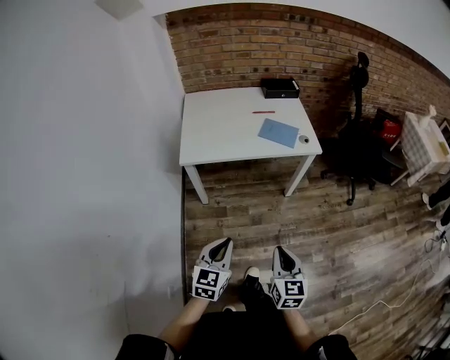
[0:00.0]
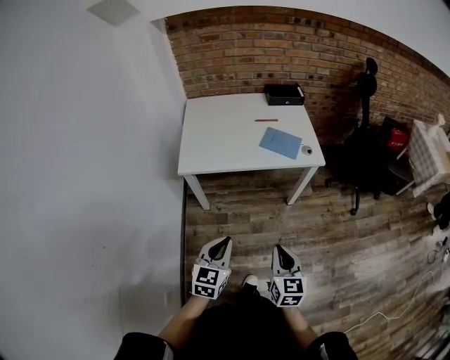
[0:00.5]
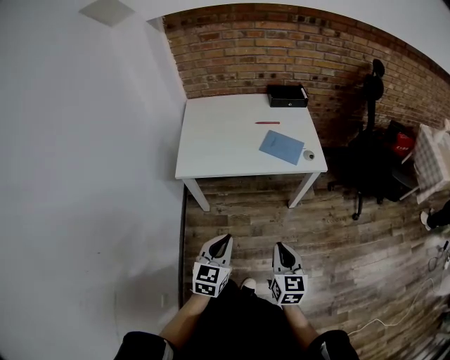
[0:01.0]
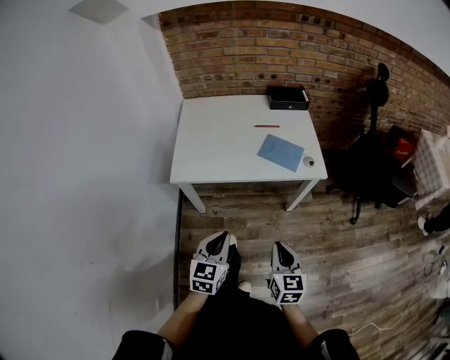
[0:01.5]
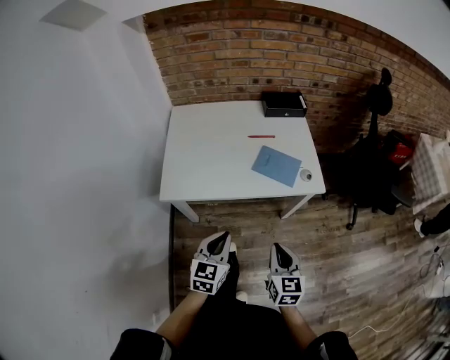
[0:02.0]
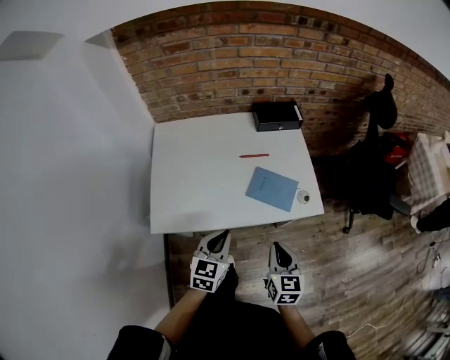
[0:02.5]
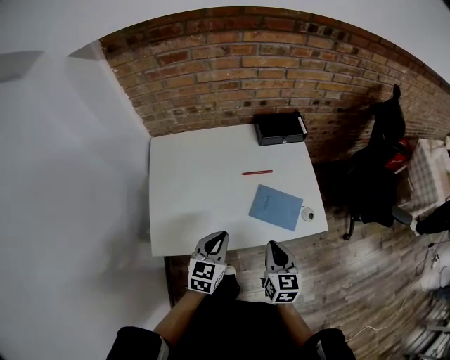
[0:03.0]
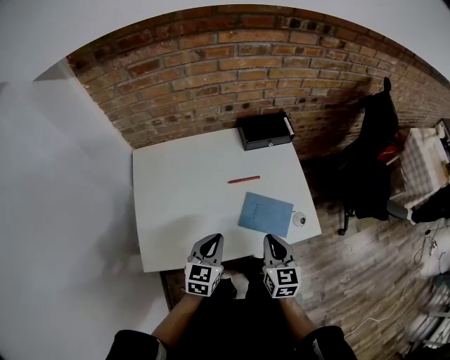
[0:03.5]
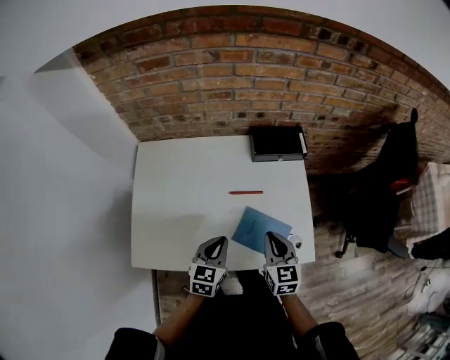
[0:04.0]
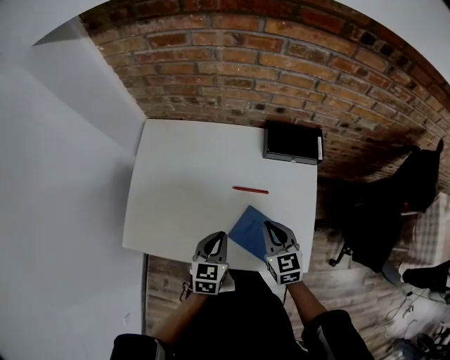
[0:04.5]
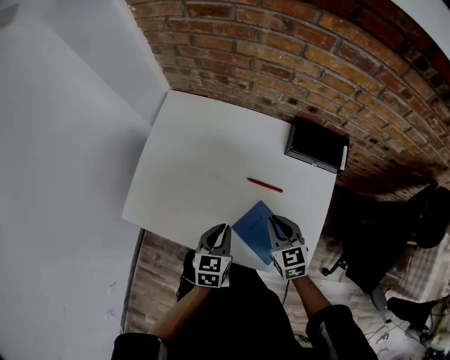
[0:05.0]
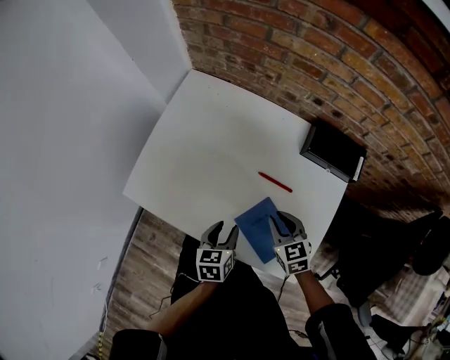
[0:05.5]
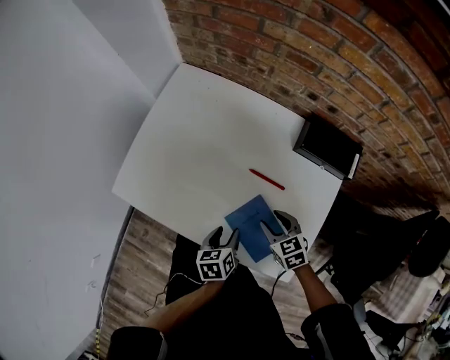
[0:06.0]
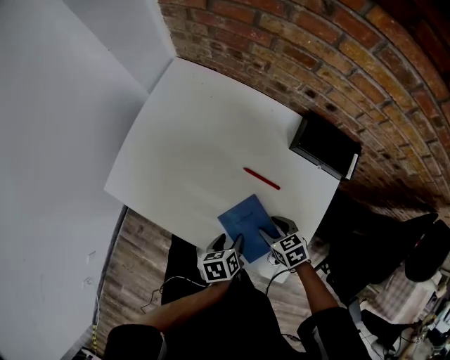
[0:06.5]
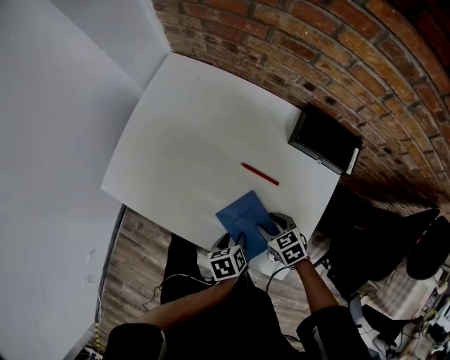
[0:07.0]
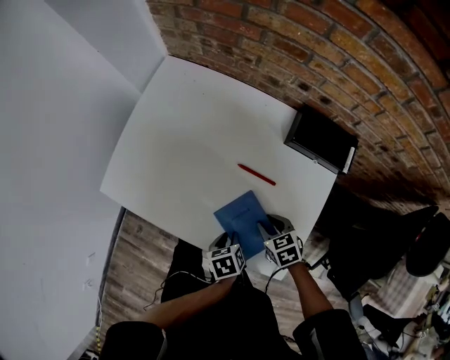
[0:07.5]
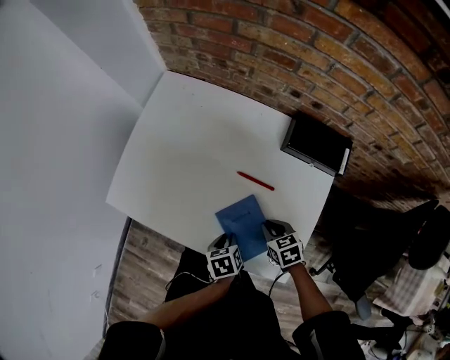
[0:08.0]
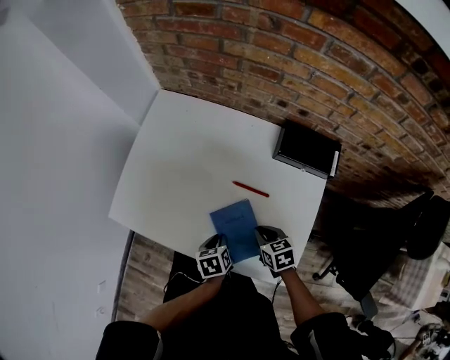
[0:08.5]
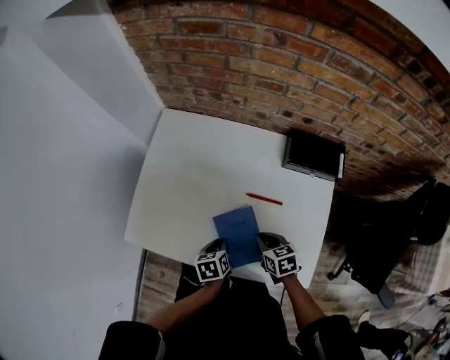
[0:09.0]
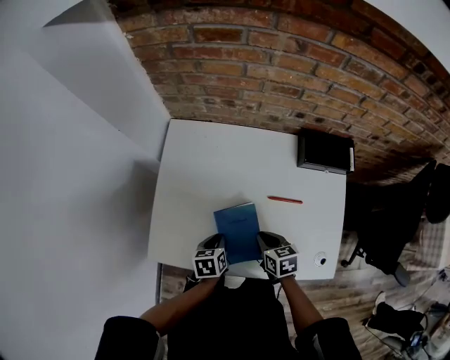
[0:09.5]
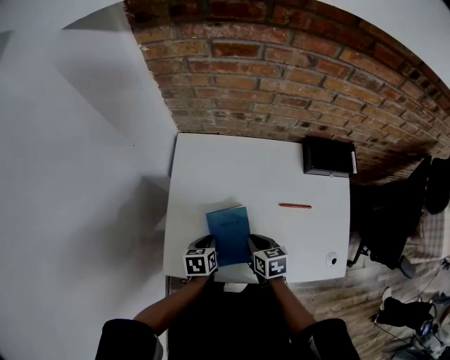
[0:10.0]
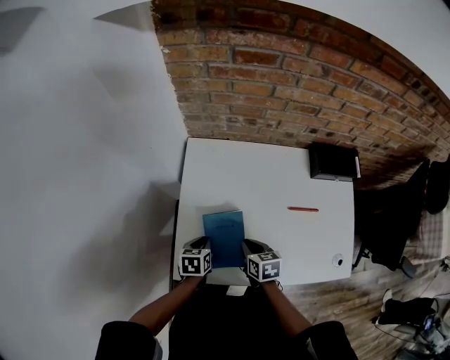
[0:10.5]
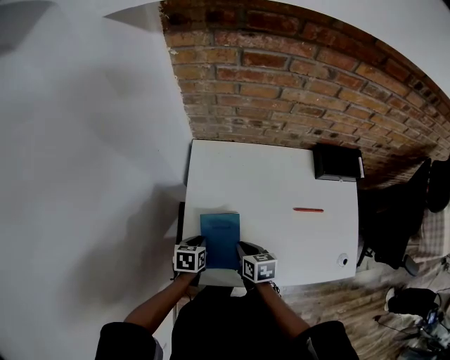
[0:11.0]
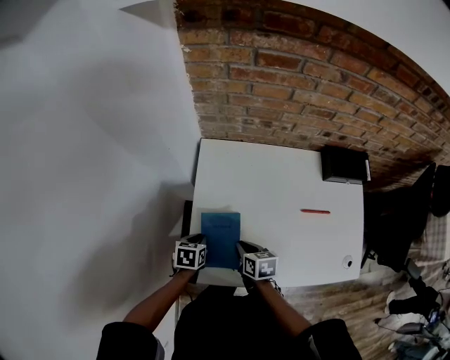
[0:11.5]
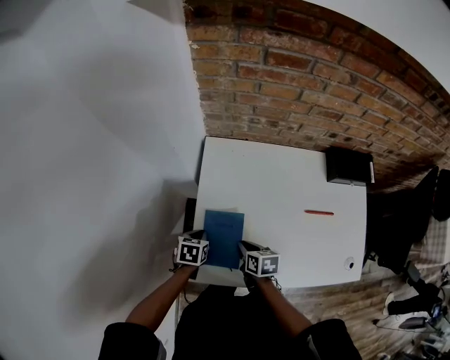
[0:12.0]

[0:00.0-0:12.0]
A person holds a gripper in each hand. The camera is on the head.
0:00.0 to 0:02.0: Both grippers move forward, roughly 30 cm.
0:02.0 to 0:04.0: The two grippers go roughly 35 cm forward.
0:04.0 to 0:06.0: The two grippers go roughly 15 cm downward. The right gripper rotates approximately 50 degrees, and opens, while the left gripper rotates around the line of its fingers by about 50 degrees, counterclockwise from behind, and opens up.
0:06.0 to 0:08.0: The right gripper closes; the left gripper closes up.
0:08.0 to 0:10.0: The two grippers go some 30 cm to the left and forward. The right gripper swivels about 30 degrees, while the left gripper rotates some 30 degrees.
0:10.0 to 0:12.0: The grippers both shift to the left by some 15 cm.

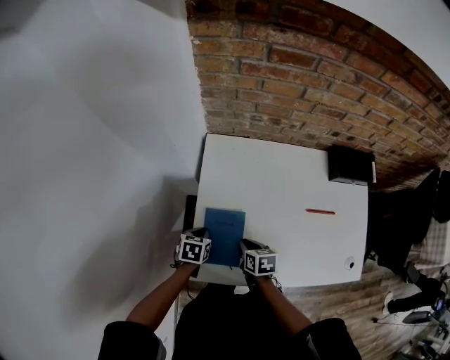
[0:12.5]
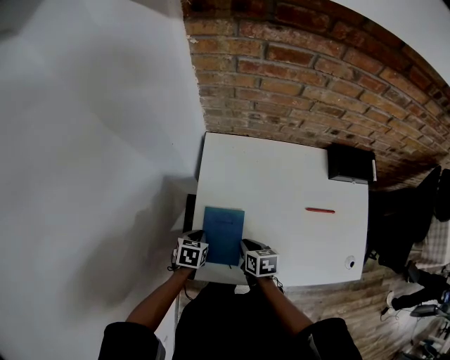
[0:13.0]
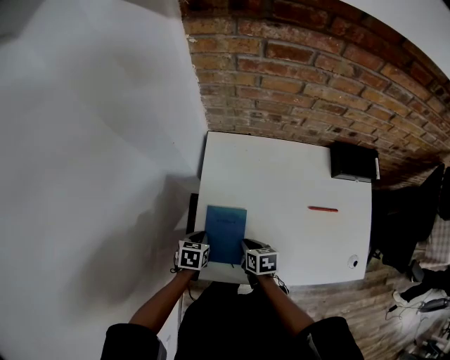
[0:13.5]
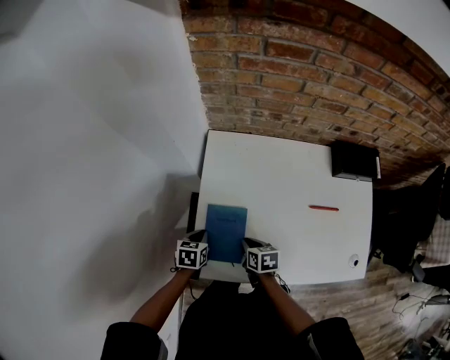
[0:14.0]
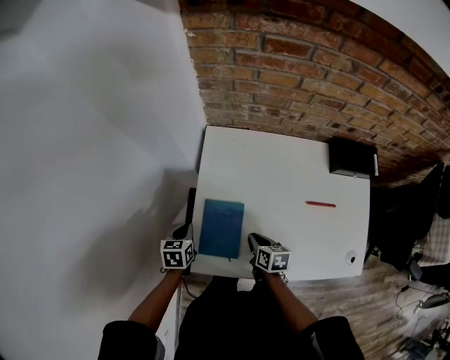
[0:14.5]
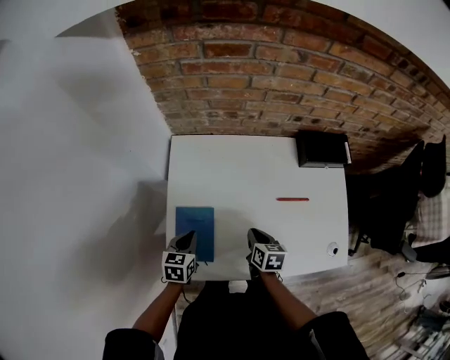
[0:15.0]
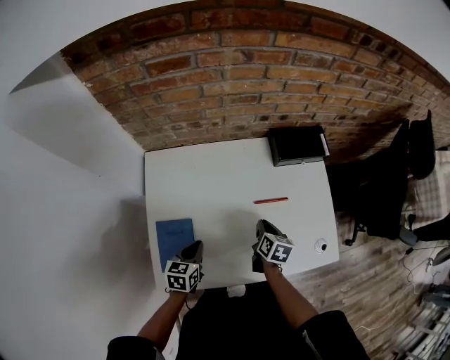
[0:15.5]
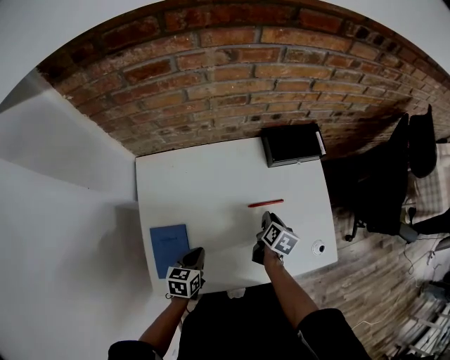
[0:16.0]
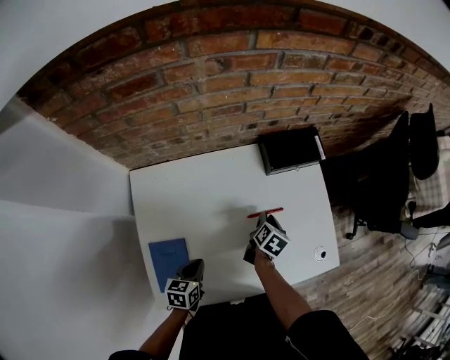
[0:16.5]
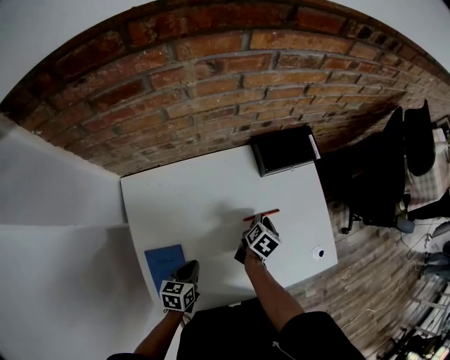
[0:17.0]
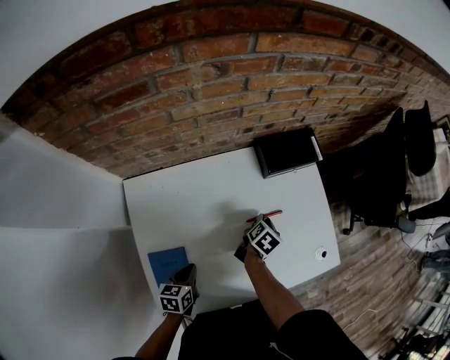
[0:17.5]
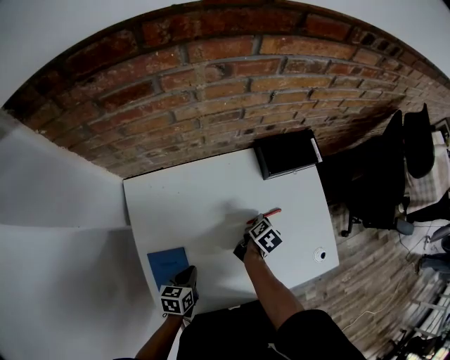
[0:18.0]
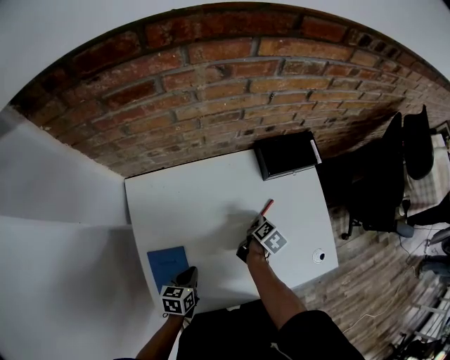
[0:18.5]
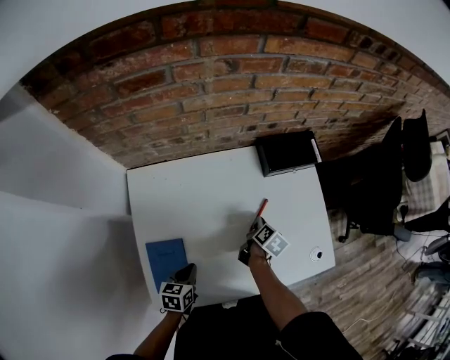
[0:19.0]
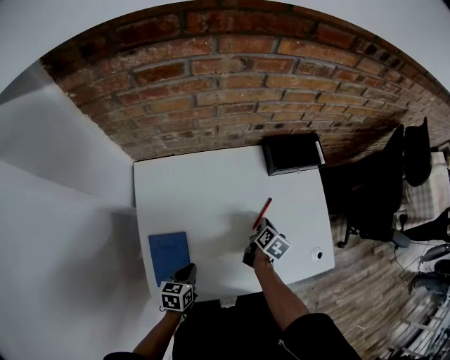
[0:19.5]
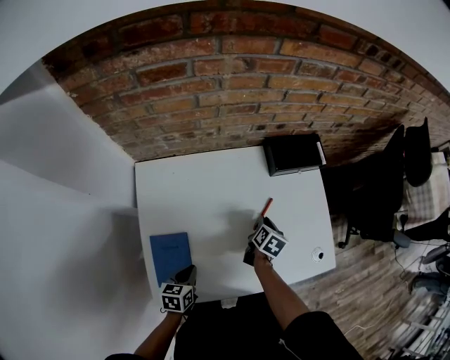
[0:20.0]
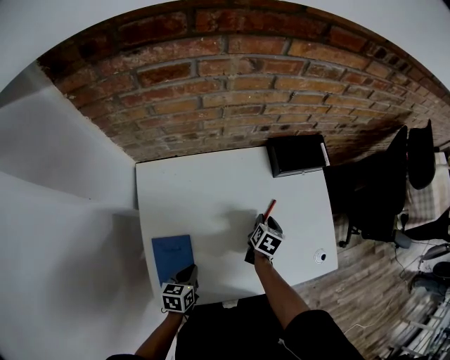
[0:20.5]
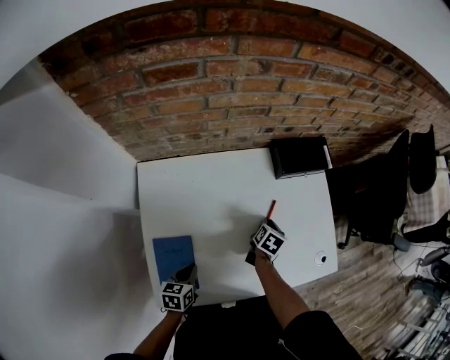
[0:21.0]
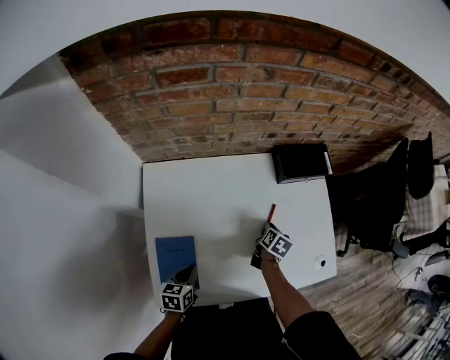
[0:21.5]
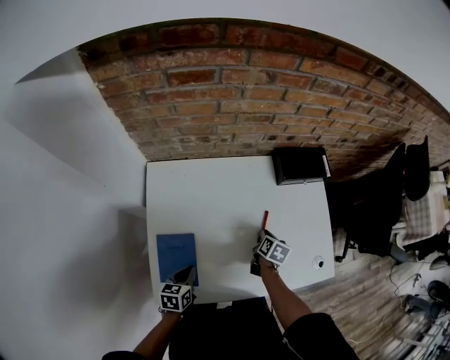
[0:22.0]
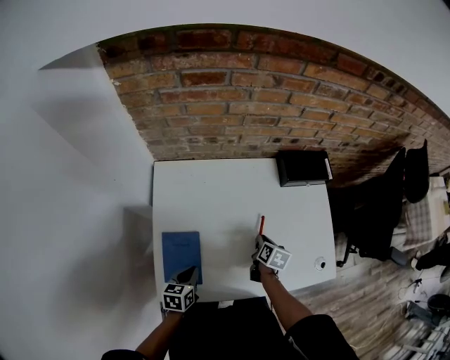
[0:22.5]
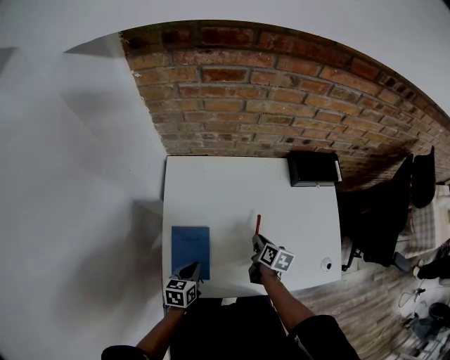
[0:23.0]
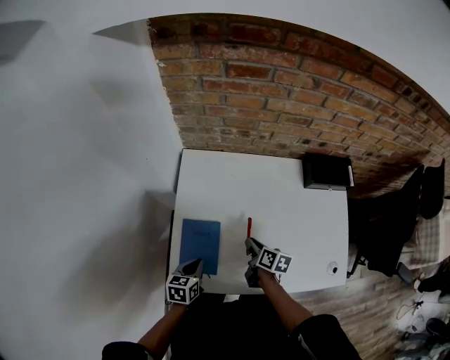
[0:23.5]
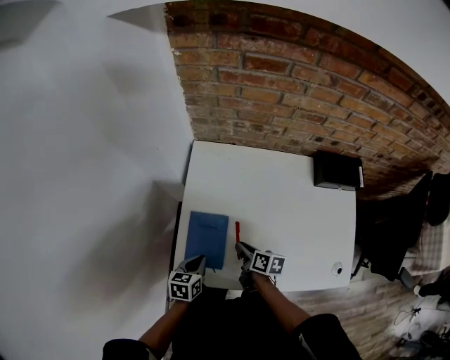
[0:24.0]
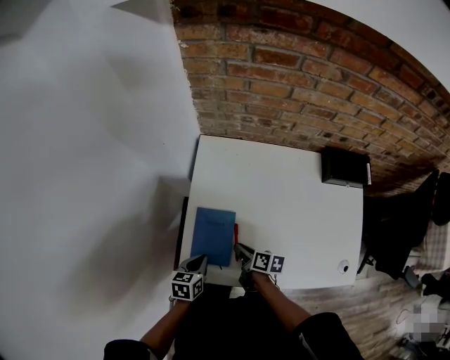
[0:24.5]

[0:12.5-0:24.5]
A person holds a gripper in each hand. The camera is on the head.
0:12.5 to 0:14.5: The left gripper is displaced to the left by some 5 cm.
0:14.5 to 0:16.5: The left gripper shifts by about 25 cm, and swivels some 30 degrees. Meanwhile the right gripper moves about 30 cm, and rotates approximately 50 degrees.
0:16.5 to 0:18.5: There are only small adjustments of the grippers.
0:18.5 to 0:20.5: The right gripper rotates about 30 degrees.
0:20.5 to 0:22.5: The right gripper shifts roughly 5 cm backward.
0:22.5 to 0:24.5: The left gripper ends up some 10 cm from where it was. Meanwhile the right gripper ends up roughly 25 cm from where it was, and swivels roughly 40 degrees.

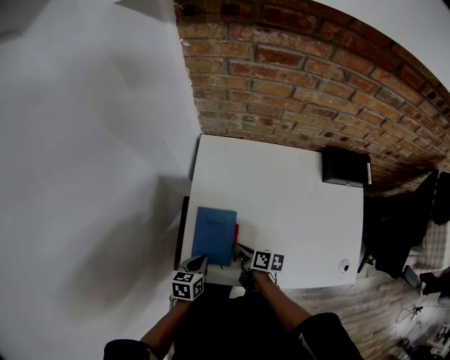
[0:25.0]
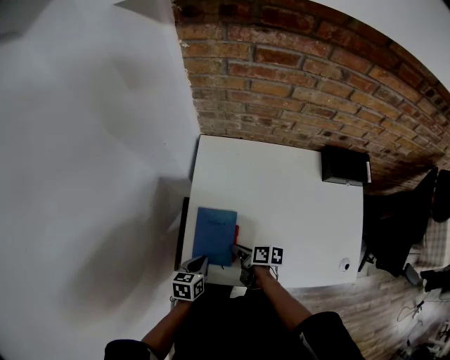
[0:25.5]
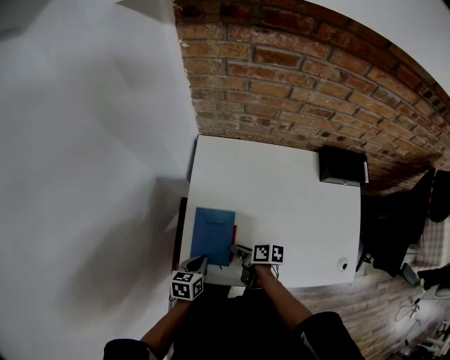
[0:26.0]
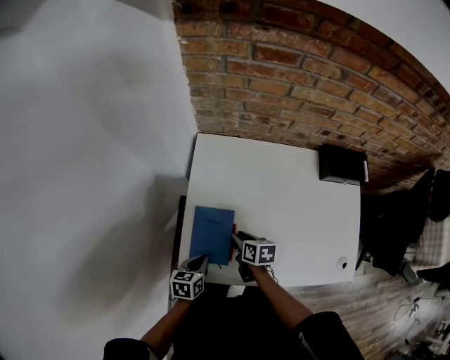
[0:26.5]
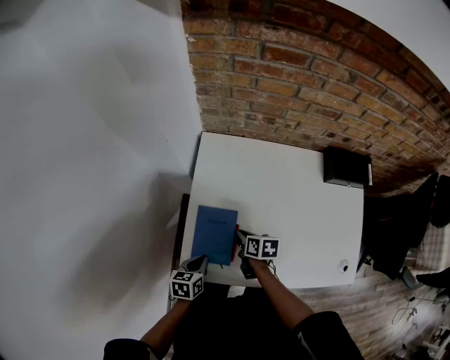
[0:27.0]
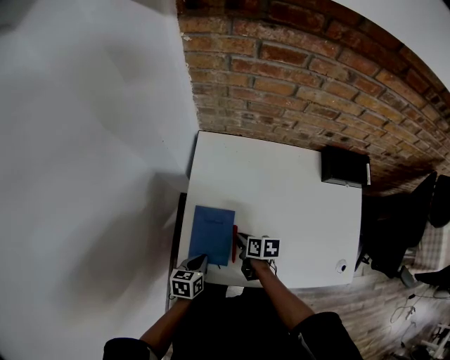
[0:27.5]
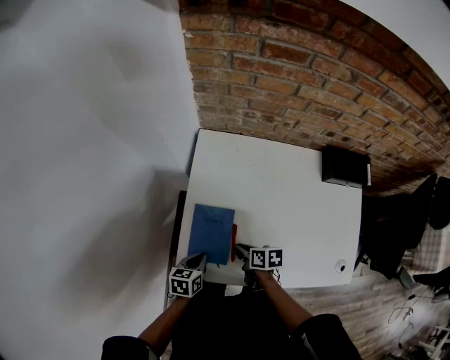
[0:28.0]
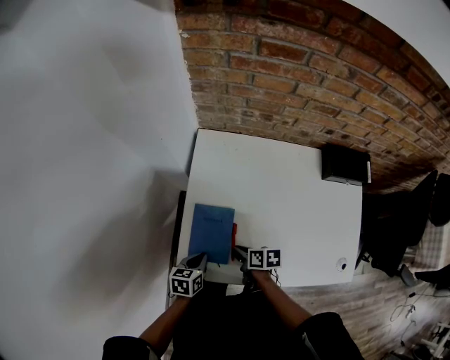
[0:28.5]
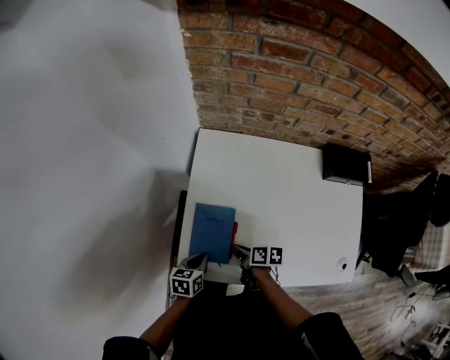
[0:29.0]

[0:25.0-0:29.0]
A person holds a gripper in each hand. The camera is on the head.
0:25.0 to 0:27.0: The right gripper changes its angle by some 20 degrees.
0:27.0 to 0:29.0: The right gripper is displaced backward by about 5 cm.
